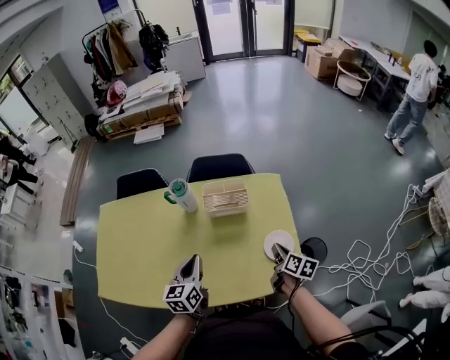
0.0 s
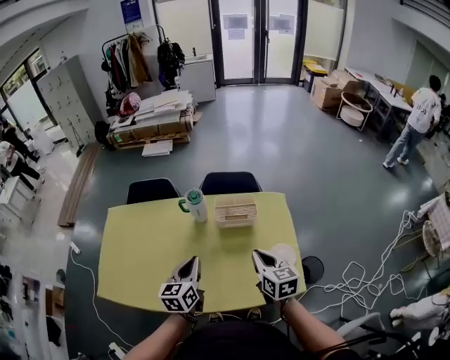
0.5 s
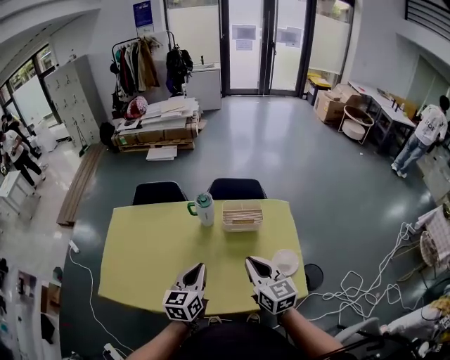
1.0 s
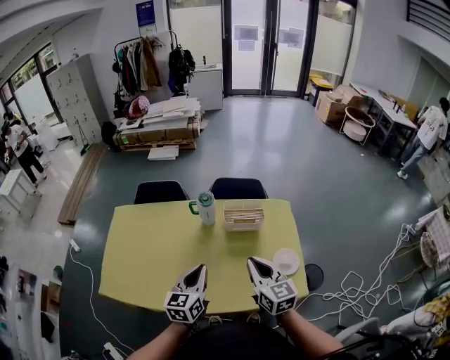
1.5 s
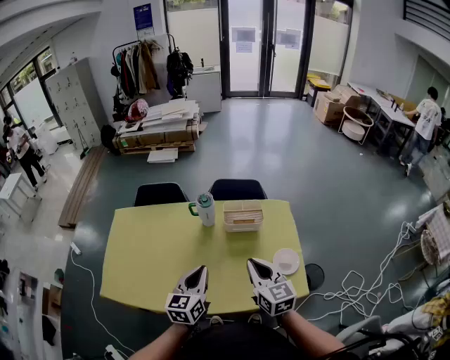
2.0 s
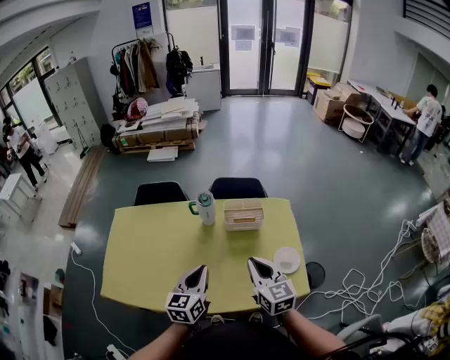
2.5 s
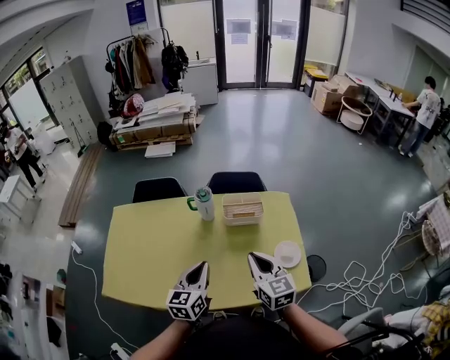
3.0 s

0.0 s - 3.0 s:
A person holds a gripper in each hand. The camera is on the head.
0.0 s - 1.5 s: The left gripper ends up about 10 cm from where it was.

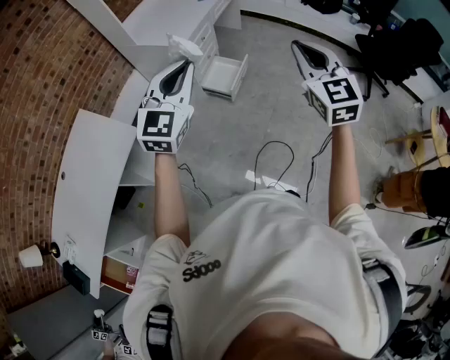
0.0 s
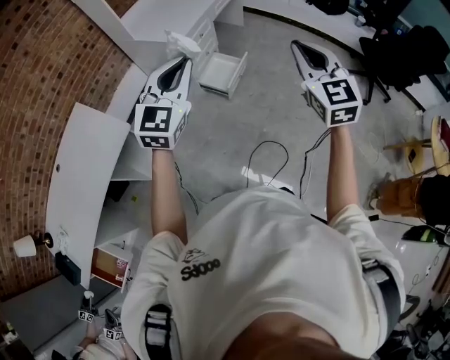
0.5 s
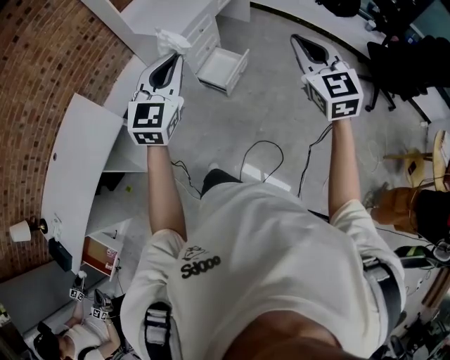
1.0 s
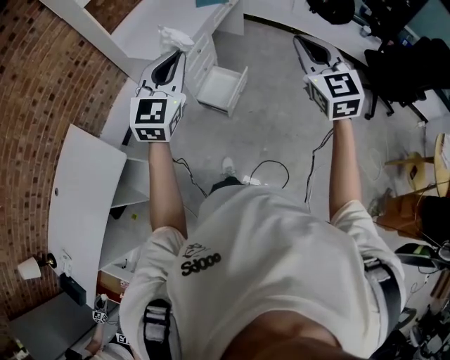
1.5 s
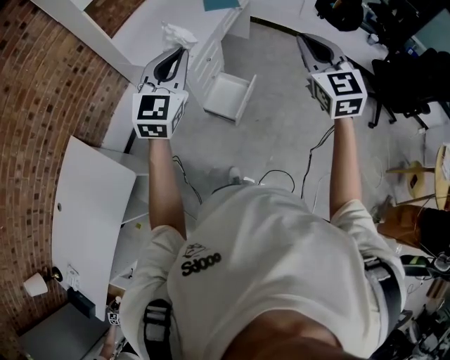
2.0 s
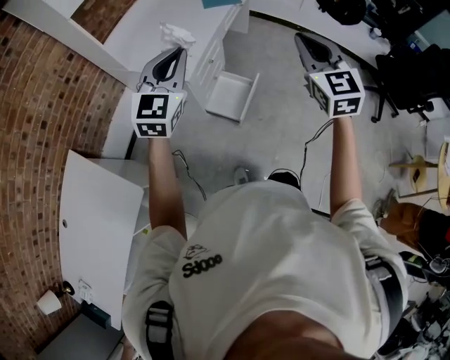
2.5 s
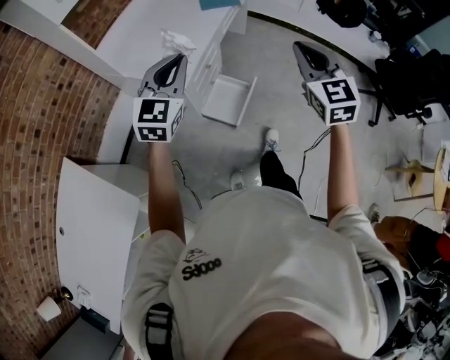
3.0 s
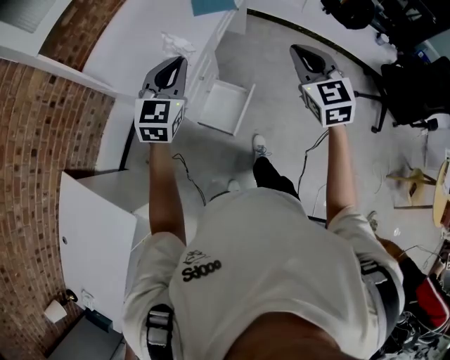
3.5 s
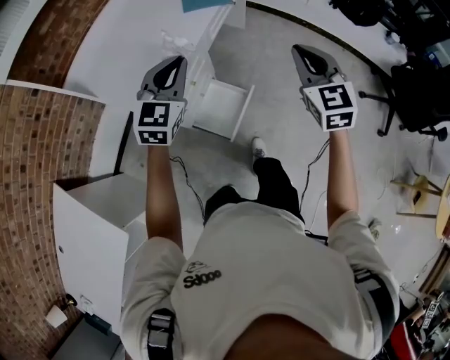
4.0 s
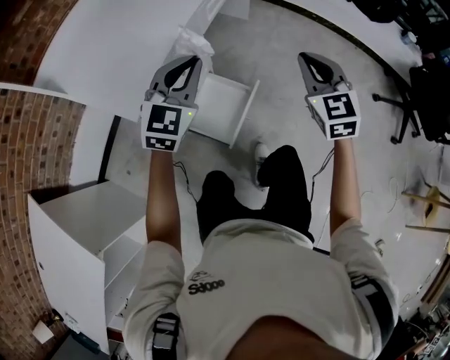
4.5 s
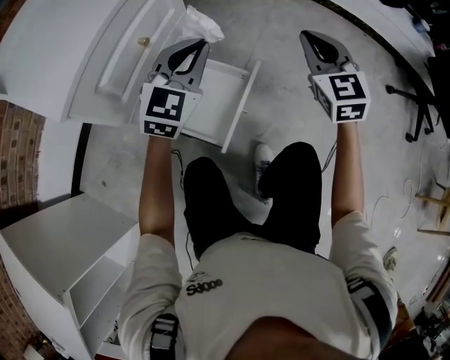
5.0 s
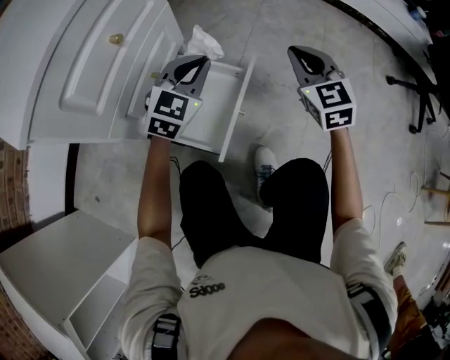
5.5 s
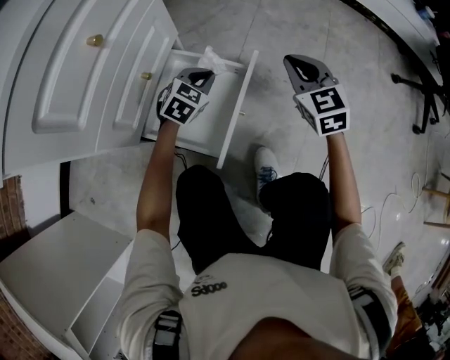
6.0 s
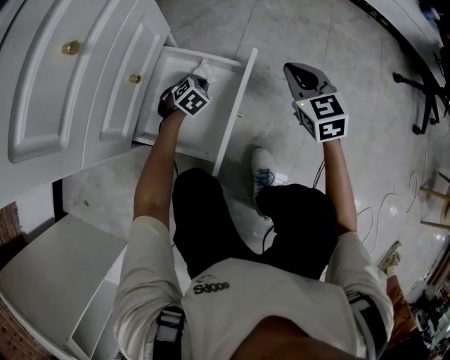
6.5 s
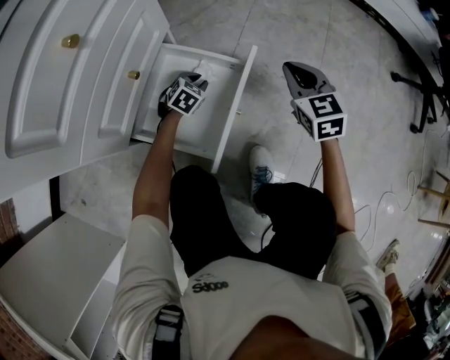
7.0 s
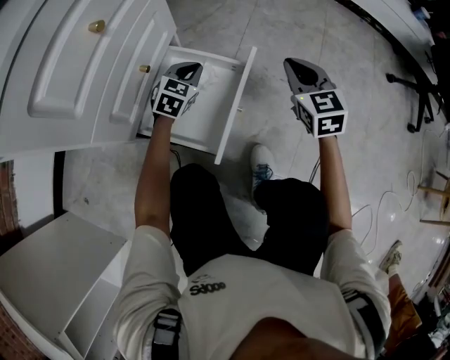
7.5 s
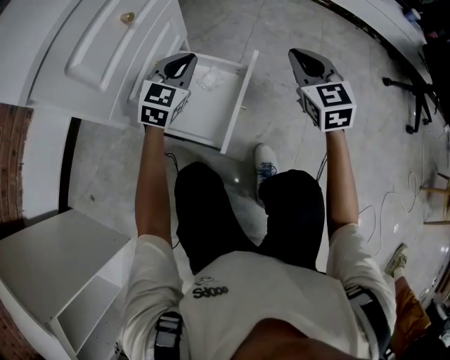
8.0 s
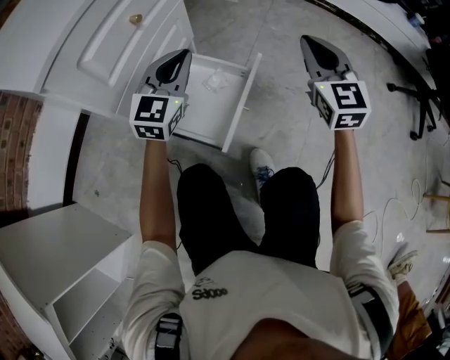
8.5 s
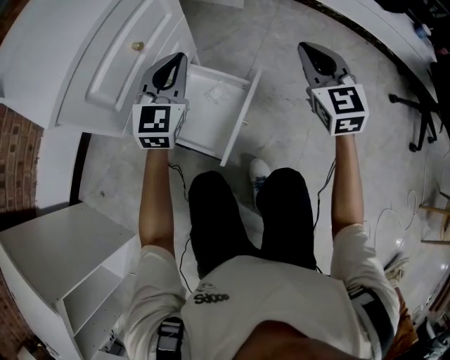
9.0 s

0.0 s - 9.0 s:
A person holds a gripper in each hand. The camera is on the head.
0.0 s - 2.0 s: Both grippers move forward, approximately 35 cm.
2.0 s - 4.5 s: Both grippers move downward and forward, roughly 50 cm.
4.5 s - 7.0 s: The two grippers go some 60 cm downward. The left gripper angles its fingers downward, by approximately 40 degrees, and opens up.
7.0 s - 9.0 s: The left gripper shifts about 40 cm upward, tips its fingers upward by approximately 50 degrees, and closes up; the right gripper travels upward by some 25 cm, and changes its angle by approximately 20 degrees.

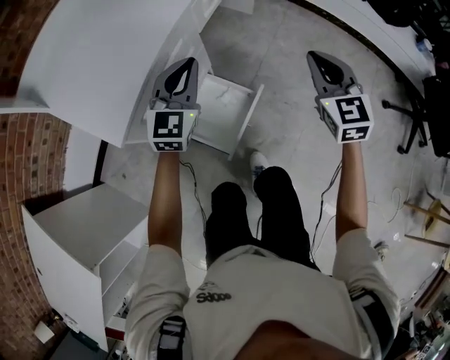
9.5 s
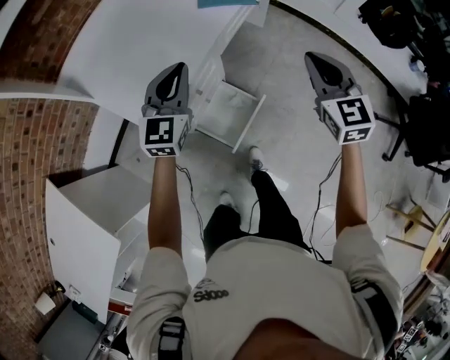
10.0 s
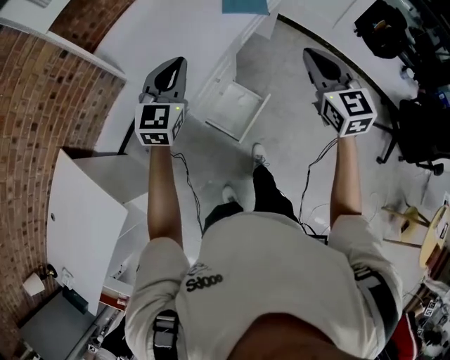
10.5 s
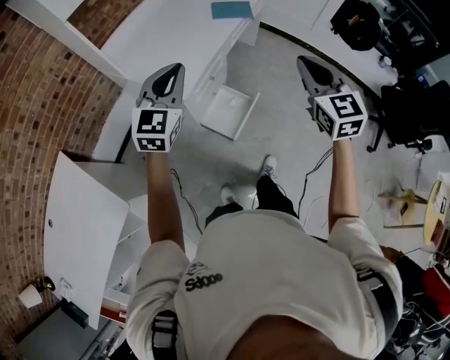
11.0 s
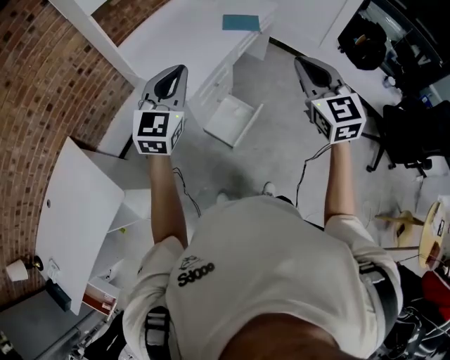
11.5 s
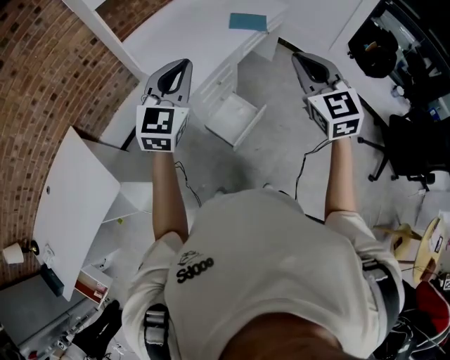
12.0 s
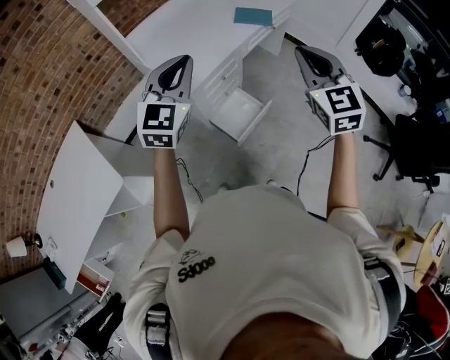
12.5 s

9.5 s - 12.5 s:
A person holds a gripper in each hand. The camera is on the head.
9.5 s - 11.0 s: Both grippers move upward and backward, roughly 50 cm.
11.0 s - 12.5 s: The right gripper travels upward by roughly 5 cm, while the left gripper is displaced upward, backward and to the right by some 10 cm.

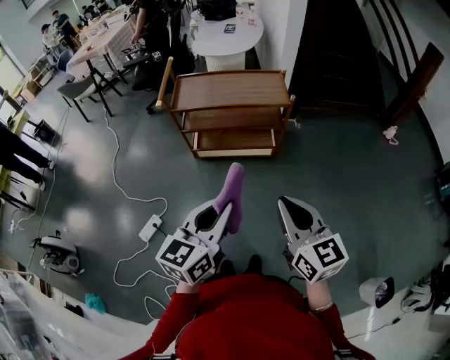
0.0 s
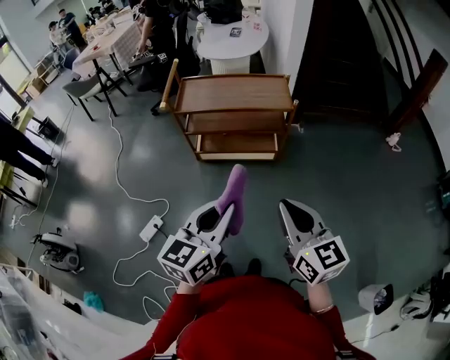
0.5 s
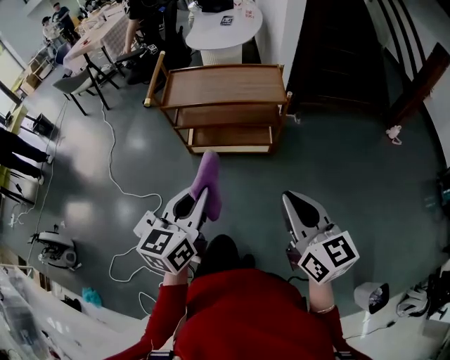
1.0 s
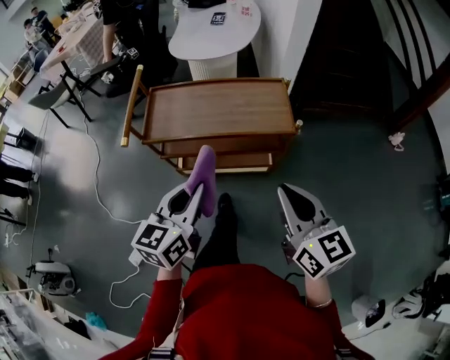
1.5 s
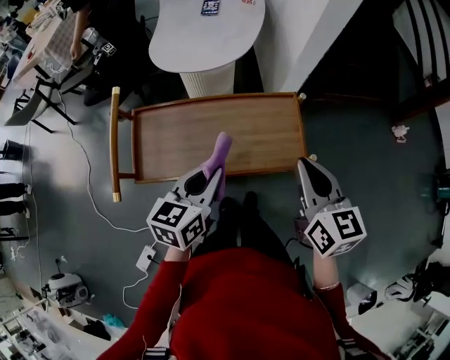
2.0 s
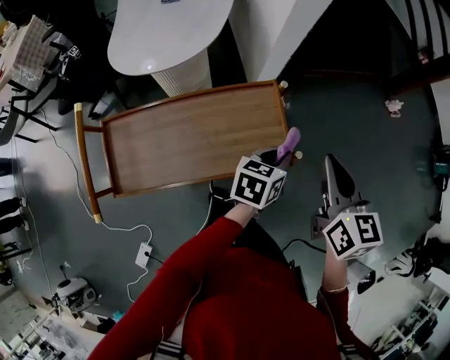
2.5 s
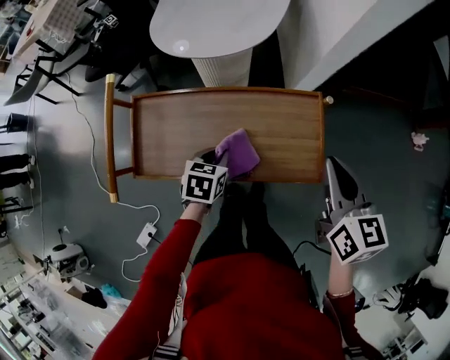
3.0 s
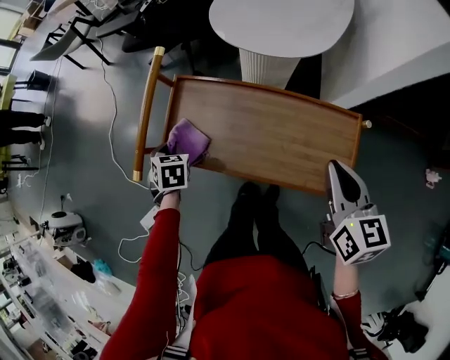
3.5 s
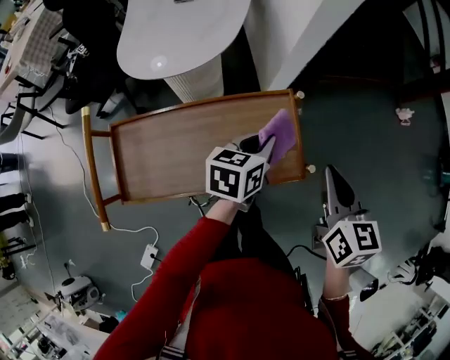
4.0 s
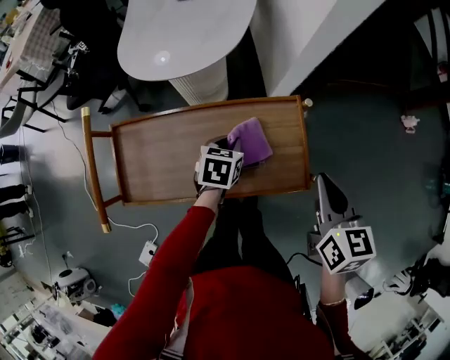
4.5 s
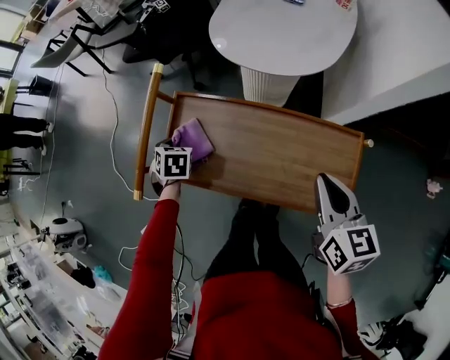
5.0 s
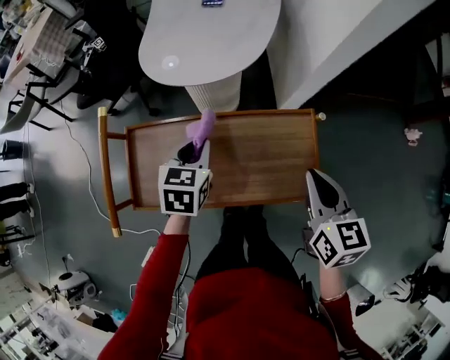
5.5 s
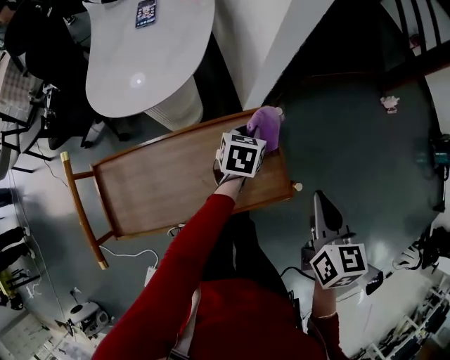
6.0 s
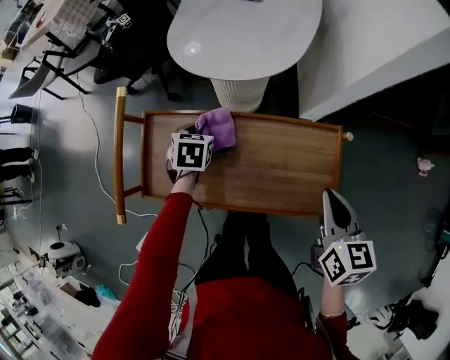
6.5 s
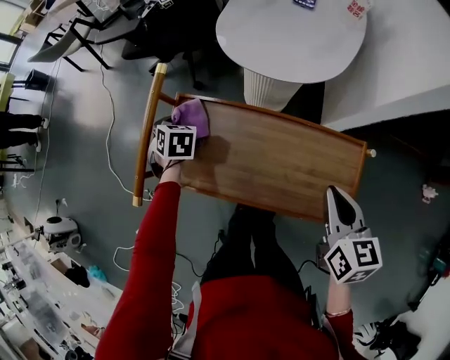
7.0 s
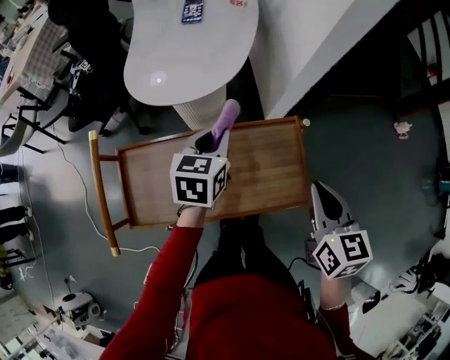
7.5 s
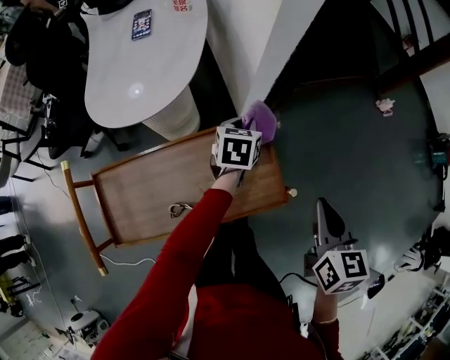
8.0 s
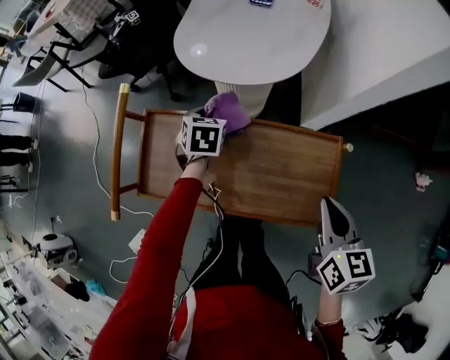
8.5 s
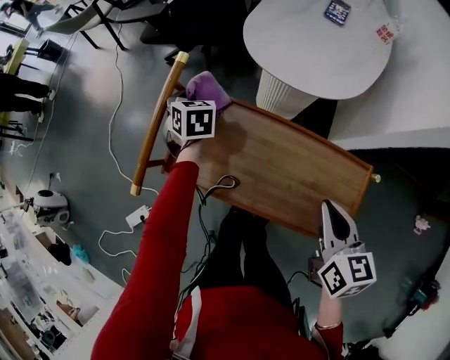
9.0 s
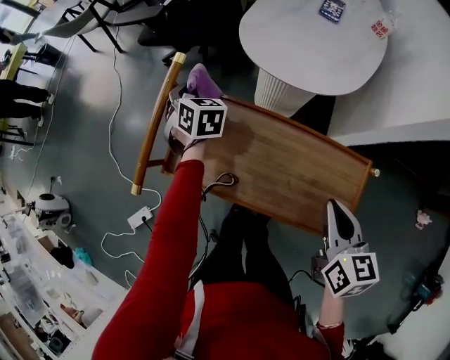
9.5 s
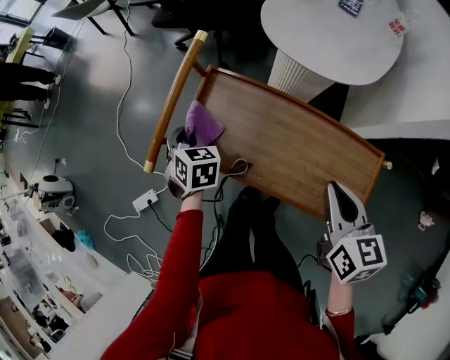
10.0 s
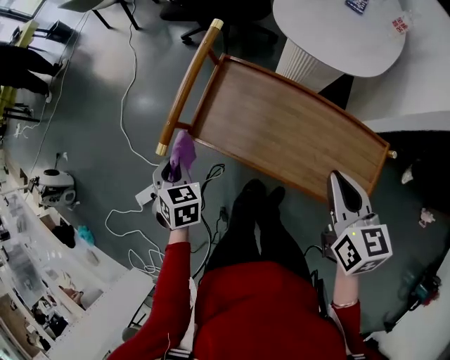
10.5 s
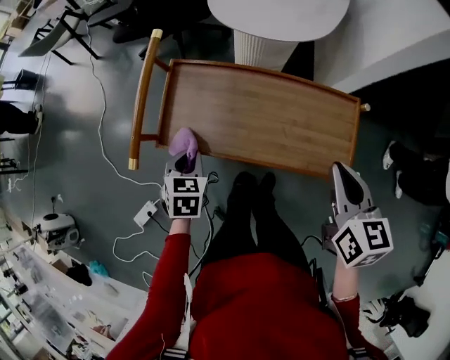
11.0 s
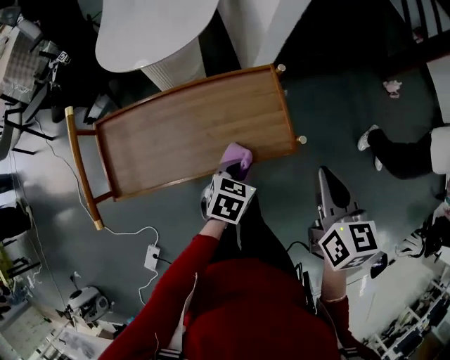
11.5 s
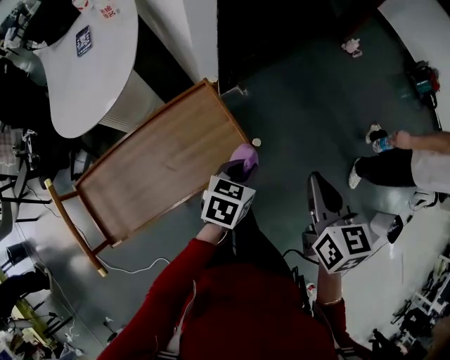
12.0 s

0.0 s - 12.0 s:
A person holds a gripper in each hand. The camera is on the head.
0.0 s - 2.0 s: The two grippers travel together, forward, about 40 cm.
2.0 s - 4.0 s: The right gripper changes place by about 10 cm.
4.0 s - 6.0 s: The left gripper goes up and down, some 15 cm each way, reversing 2 times.
6.0 s - 8.0 s: The left gripper moves approximately 10 cm upward and comes back.
8.0 s - 10.0 s: The left gripper moves roughly 50 cm, and turns by approximately 60 degrees. Meanwhile the right gripper moves roughly 20 cm, and changes its angle by roughly 50 degrees.
10.0 s - 12.0 s: The left gripper ends up roughly 50 cm from where it was, and changes its angle by roughly 90 degrees, while the right gripper ends up about 30 cm from where it was, and swivels approximately 60 degrees.
